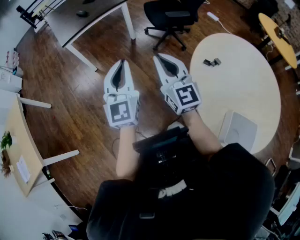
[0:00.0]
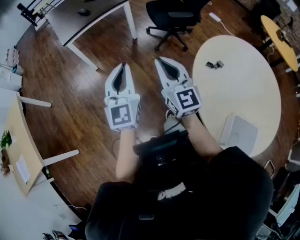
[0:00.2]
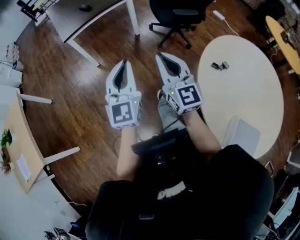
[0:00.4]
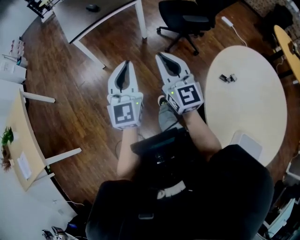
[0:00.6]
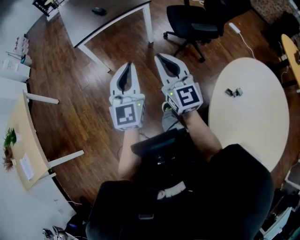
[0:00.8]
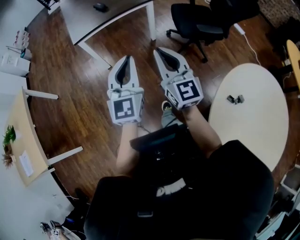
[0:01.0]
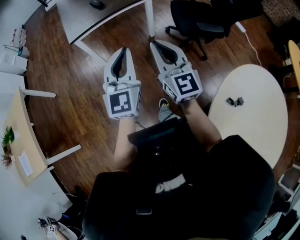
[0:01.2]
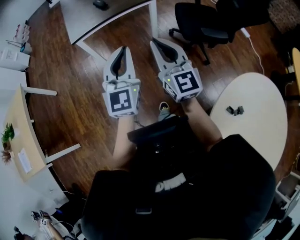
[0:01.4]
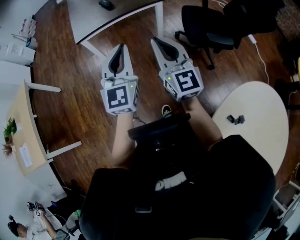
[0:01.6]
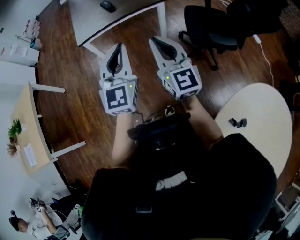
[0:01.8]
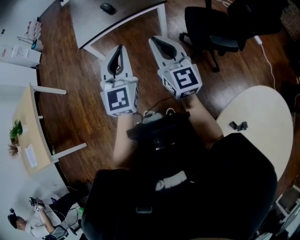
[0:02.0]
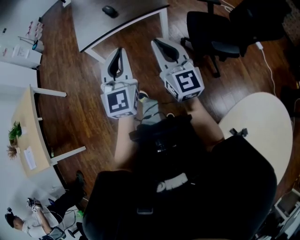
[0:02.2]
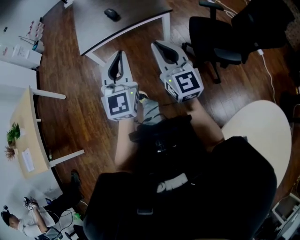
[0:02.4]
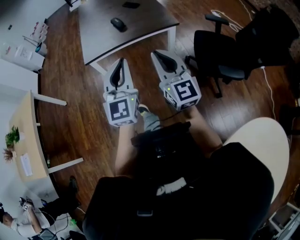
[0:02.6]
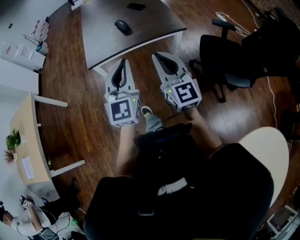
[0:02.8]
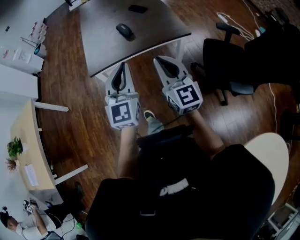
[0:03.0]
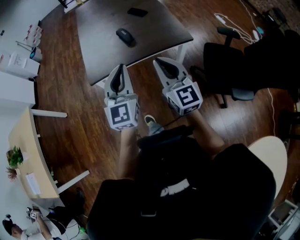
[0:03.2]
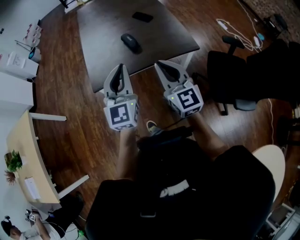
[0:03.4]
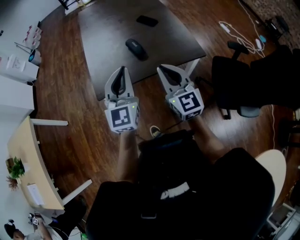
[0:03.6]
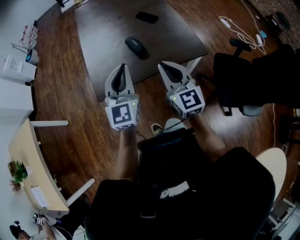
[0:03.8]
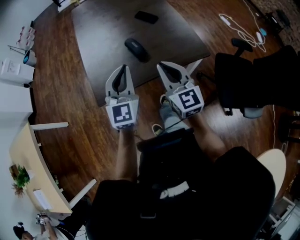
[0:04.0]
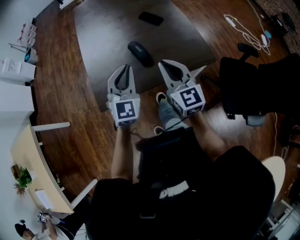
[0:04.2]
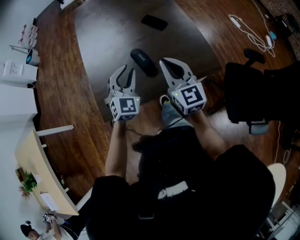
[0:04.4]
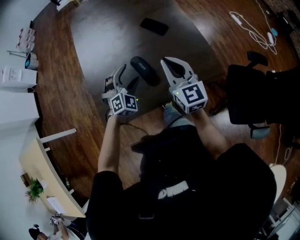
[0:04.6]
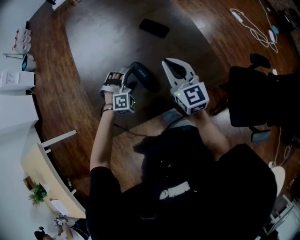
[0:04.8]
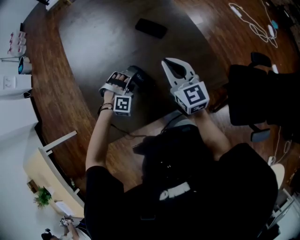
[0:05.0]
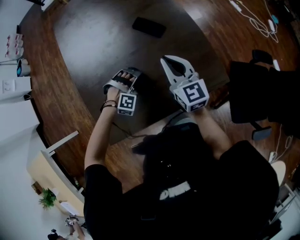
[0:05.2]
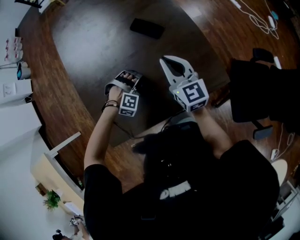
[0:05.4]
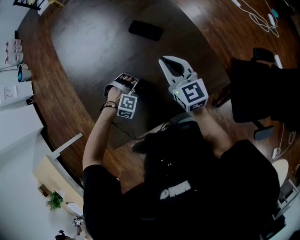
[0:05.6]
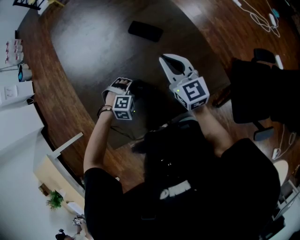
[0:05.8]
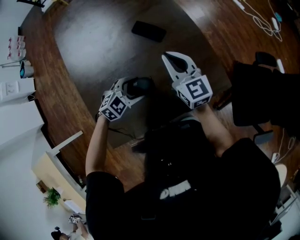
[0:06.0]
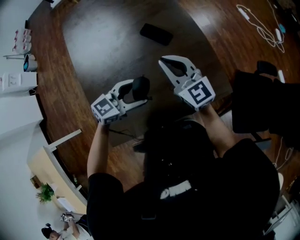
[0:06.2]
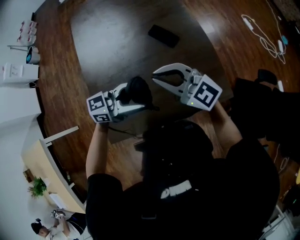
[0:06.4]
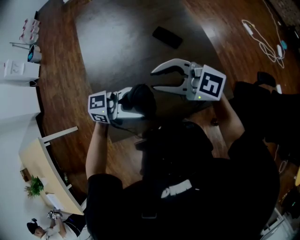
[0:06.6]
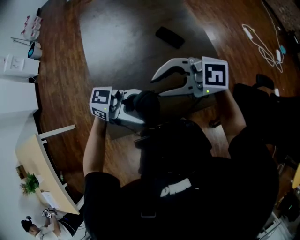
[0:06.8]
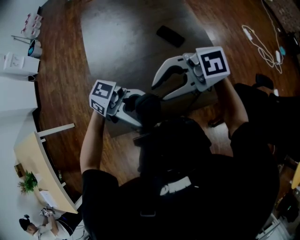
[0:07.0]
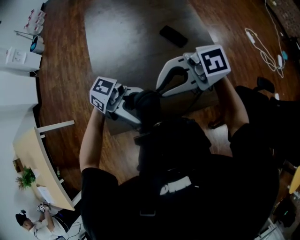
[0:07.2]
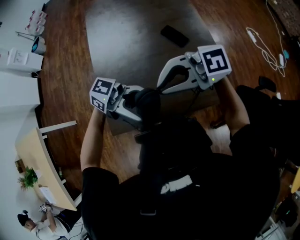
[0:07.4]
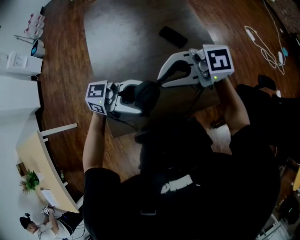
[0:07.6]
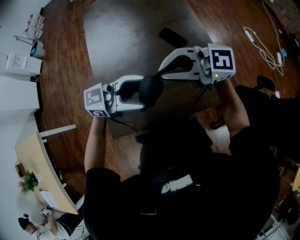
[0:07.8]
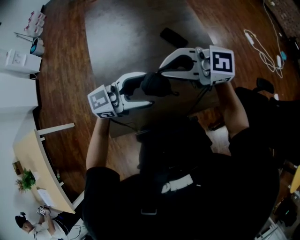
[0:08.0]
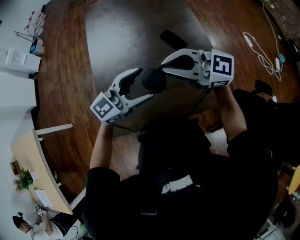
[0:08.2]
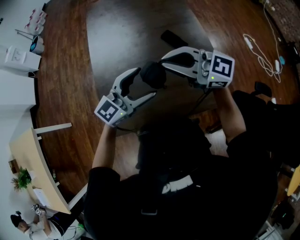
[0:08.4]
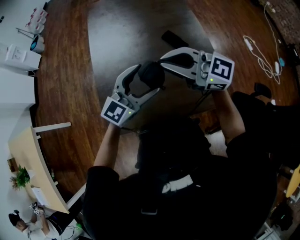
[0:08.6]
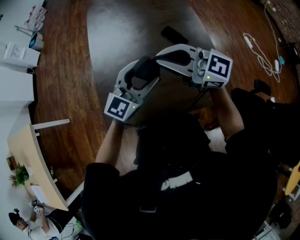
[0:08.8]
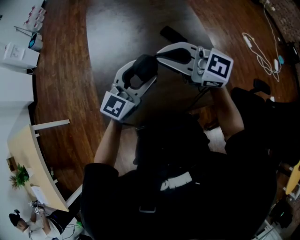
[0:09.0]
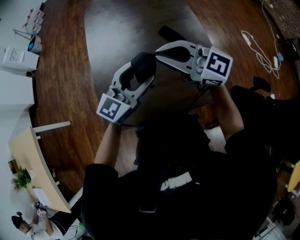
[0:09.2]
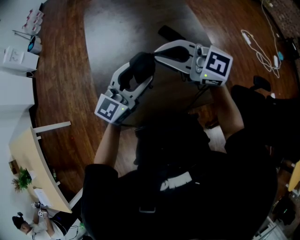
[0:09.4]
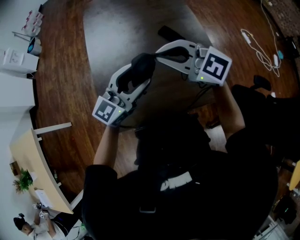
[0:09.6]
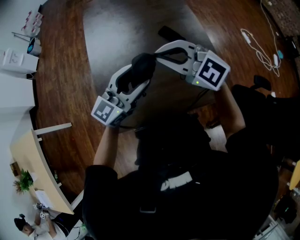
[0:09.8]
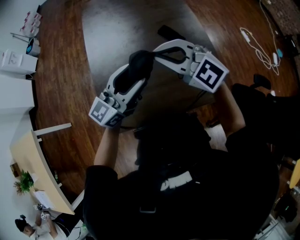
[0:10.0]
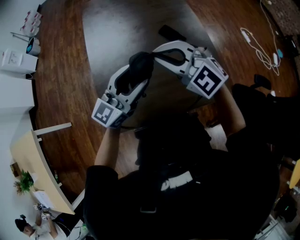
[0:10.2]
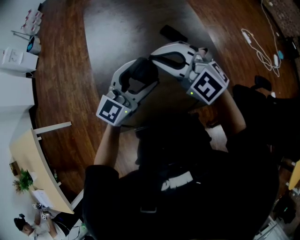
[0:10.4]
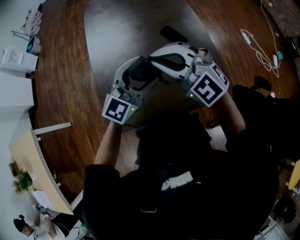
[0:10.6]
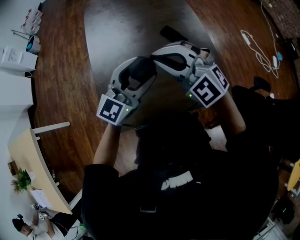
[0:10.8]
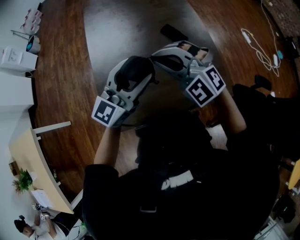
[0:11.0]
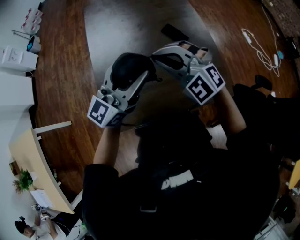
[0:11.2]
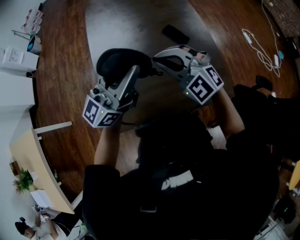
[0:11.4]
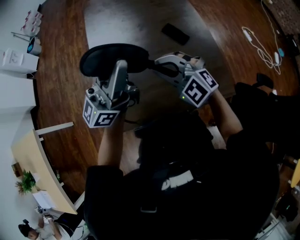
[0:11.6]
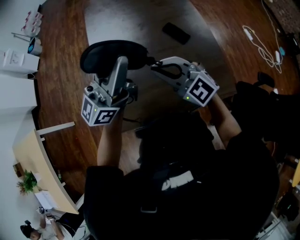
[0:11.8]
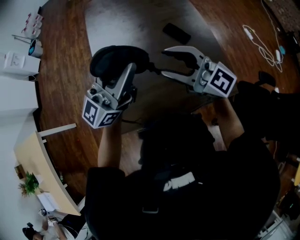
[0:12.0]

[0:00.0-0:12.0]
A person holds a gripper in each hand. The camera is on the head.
0:00.0 to 0:01.6: Both grippers travel together forward, some 35 cm.
0:01.6 to 0:03.0: The two grippers go roughly 25 cm forward.
0:03.0 to 0:04.4: Both grippers travel together forward, approximately 40 cm. The left gripper swivels about 30 degrees.
0:04.4 to 0:06.0: The left gripper moves downward, some 15 cm, changes its angle by some 60 degrees, and opens, while the right gripper moves approximately 25 cm.
0:06.0 to 0:07.6: The left gripper shifts approximately 25 cm upward, and angles its fingers upward, by some 60 degrees. Meanwhile the right gripper changes place by approximately 30 cm, rotates approximately 90 degrees, and opens, then closes once more.
0:07.6 to 0:09.0: The right gripper changes place by approximately 5 cm, and changes its angle by some 30 degrees. The left gripper moves some 10 cm, and swivels approximately 70 degrees.
0:09.0 to 0:10.4: The right gripper rotates roughly 40 degrees.
0:10.4 to 0:12.0: The left gripper travels upward and to the left by some 15 cm, and rotates roughly 30 degrees; the right gripper turns by approximately 40 degrees, and opens up.

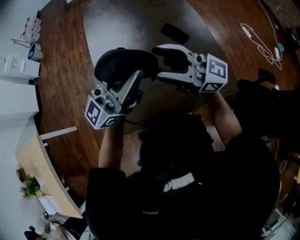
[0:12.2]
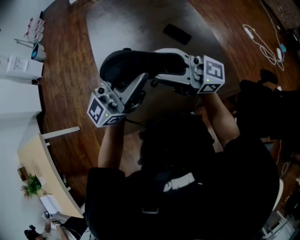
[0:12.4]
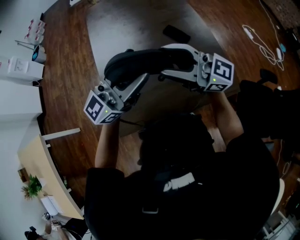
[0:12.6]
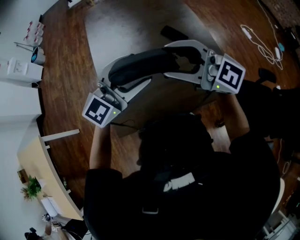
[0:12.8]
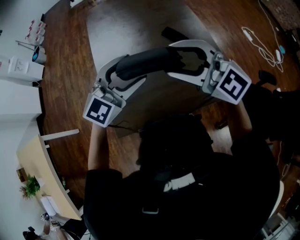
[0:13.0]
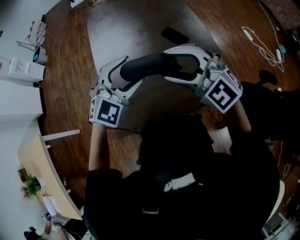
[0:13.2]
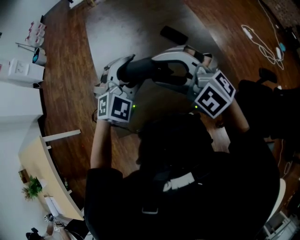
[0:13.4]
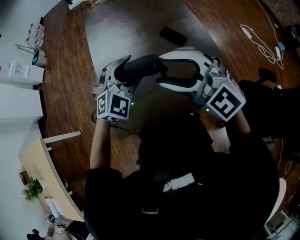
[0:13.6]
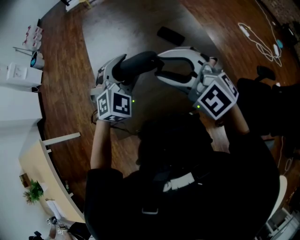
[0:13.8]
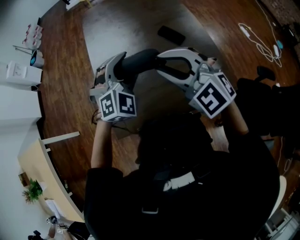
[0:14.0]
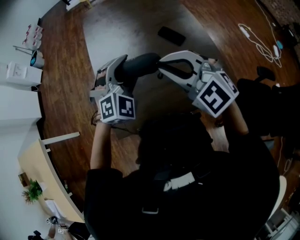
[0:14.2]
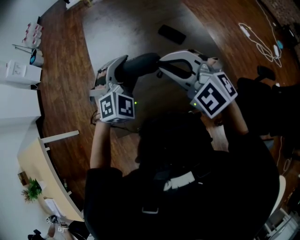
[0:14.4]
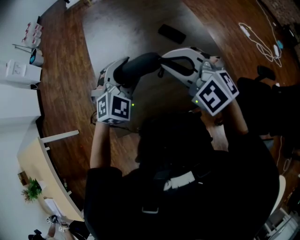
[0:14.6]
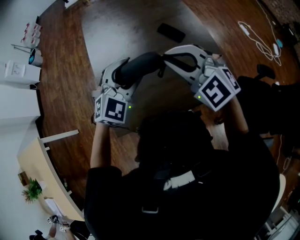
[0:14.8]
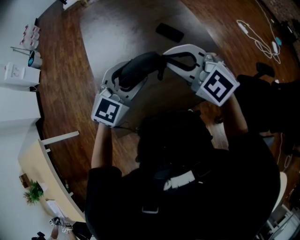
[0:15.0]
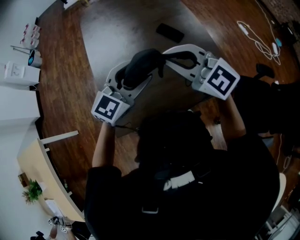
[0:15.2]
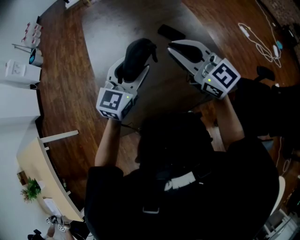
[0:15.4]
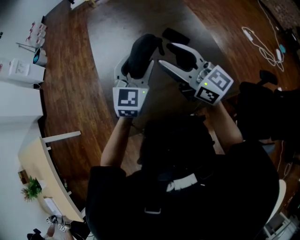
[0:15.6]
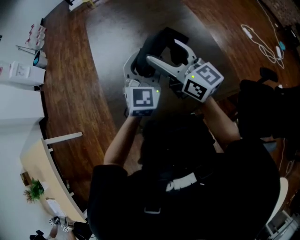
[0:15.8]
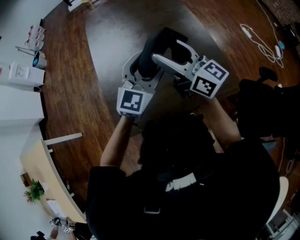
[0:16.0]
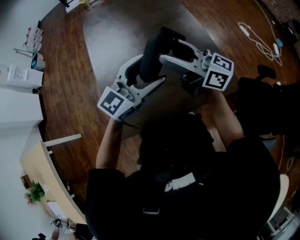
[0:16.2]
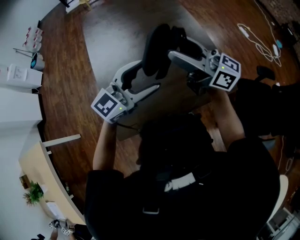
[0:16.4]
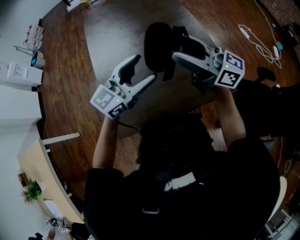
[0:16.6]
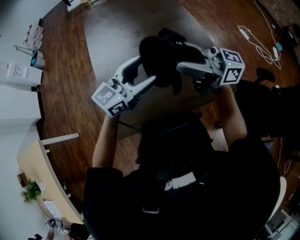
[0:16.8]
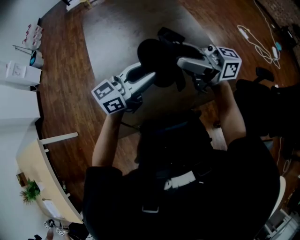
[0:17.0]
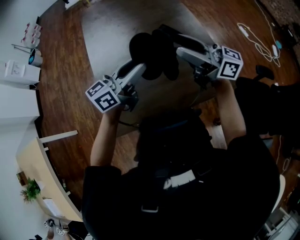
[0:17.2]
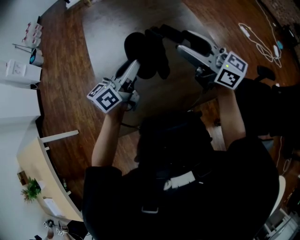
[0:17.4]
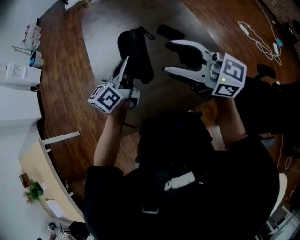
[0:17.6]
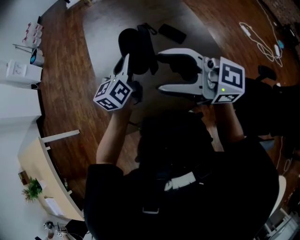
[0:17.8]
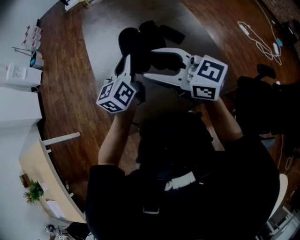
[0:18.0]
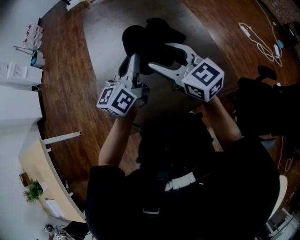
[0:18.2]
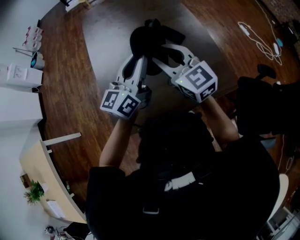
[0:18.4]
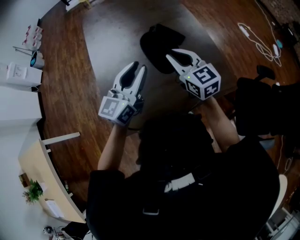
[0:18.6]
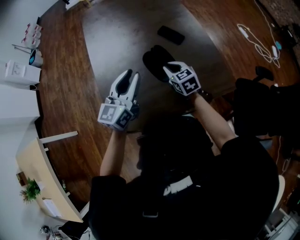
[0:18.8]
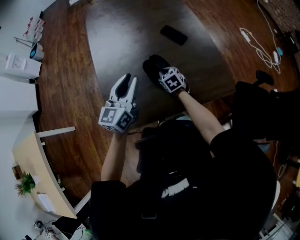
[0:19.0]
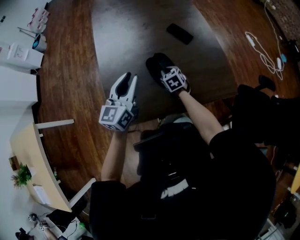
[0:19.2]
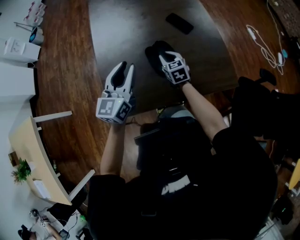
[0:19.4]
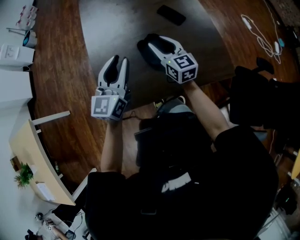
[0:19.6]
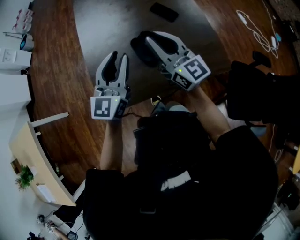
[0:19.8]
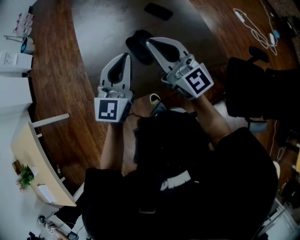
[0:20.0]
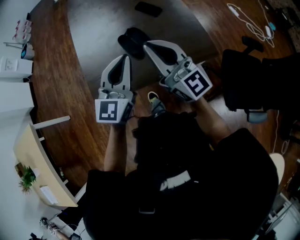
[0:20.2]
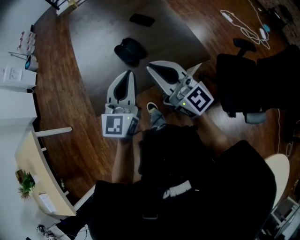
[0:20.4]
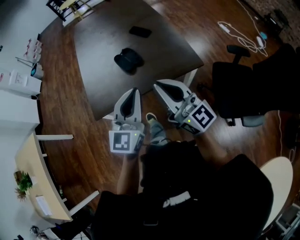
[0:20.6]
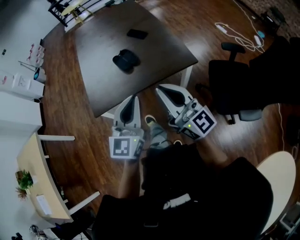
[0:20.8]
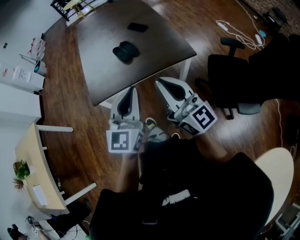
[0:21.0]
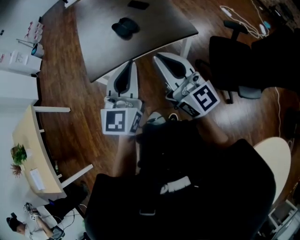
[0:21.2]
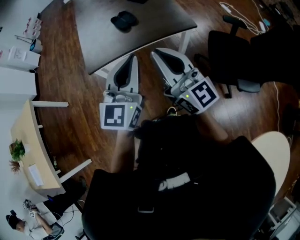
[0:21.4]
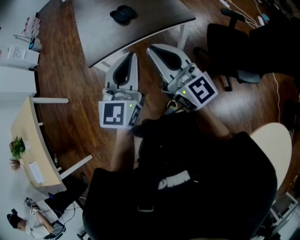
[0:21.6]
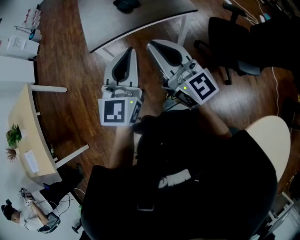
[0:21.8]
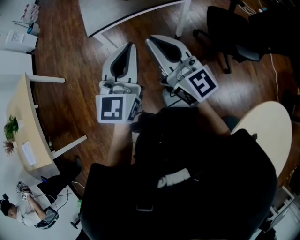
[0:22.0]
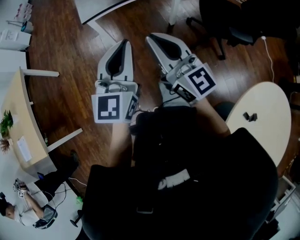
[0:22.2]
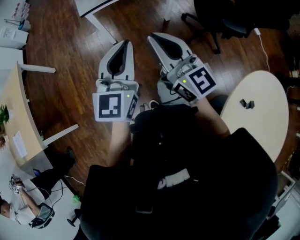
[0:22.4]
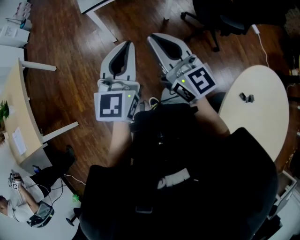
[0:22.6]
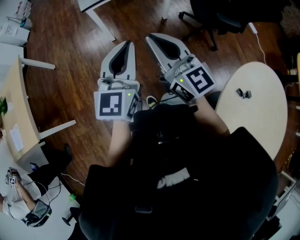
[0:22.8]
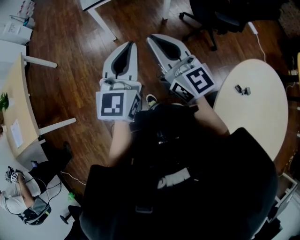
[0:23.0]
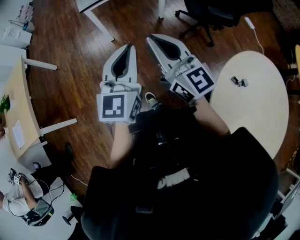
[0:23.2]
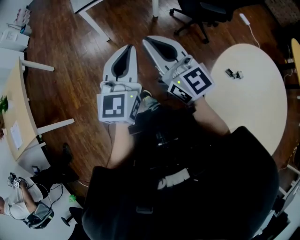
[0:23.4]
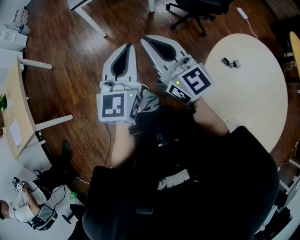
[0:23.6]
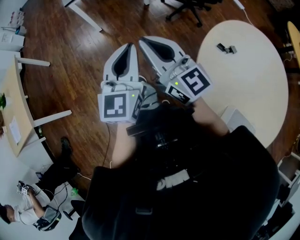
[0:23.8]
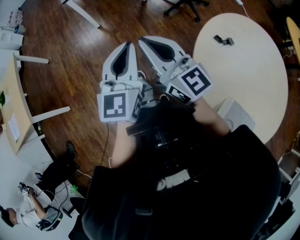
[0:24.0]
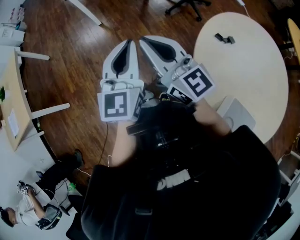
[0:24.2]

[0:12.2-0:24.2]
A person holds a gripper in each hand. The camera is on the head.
0:12.2 to 0:13.8: The left gripper shifts approximately 15 cm downward, and angles its fingers downward, by roughly 60 degrees. Meanwhile the right gripper twists some 50 degrees counterclockwise, seen from behind, and closes up.
0:13.8 to 0:15.2: The left gripper changes place by approximately 5 cm, and changes its angle by some 40 degrees; the right gripper changes its angle by approximately 30 degrees, and closes.
0:15.2 to 0:16.6: The right gripper travels to the right by approximately 5 cm, turns by about 40 degrees, and opens up, while the left gripper goes forward and returns, roughly 5 cm each way, and turns by approximately 20 degrees.
0:16.6 to 0:18.2: The right gripper shifts by approximately 10 cm, and swivels approximately 30 degrees. Meanwhile the left gripper changes its angle by some 40 degrees, and closes its fingers.
0:18.2 to 0:19.8: The left gripper travels backward by about 10 cm, and swivels some 30 degrees; the right gripper moves some 30 cm downward and comes back, and closes.
0:19.8 to 0:21.2: Both grippers are carried backward, roughly 40 cm.
0:21.2 to 0:22.6: The pair of grippers is taken backward, some 40 cm.
0:22.6 to 0:24.2: The two grippers go about 35 cm backward.
